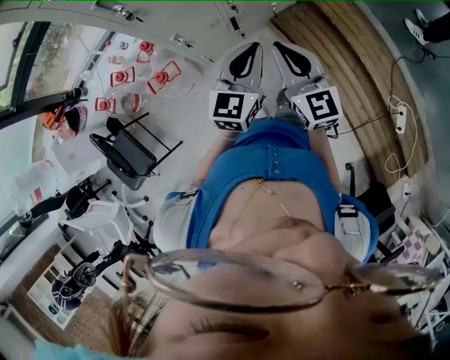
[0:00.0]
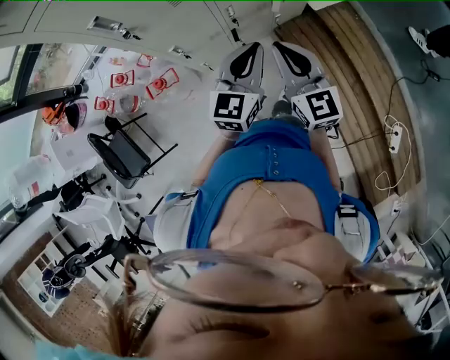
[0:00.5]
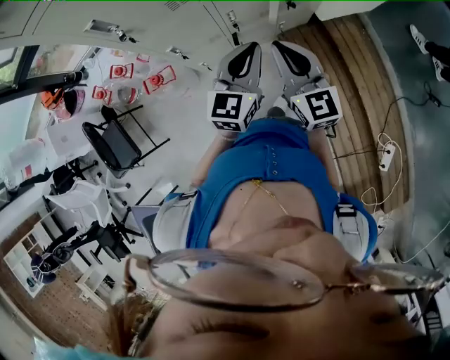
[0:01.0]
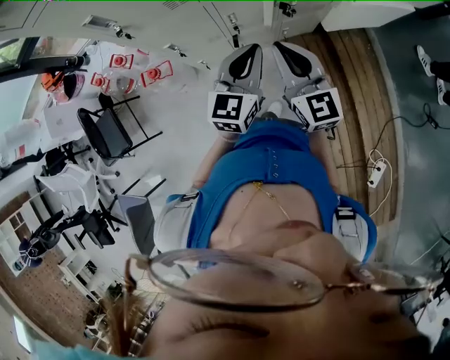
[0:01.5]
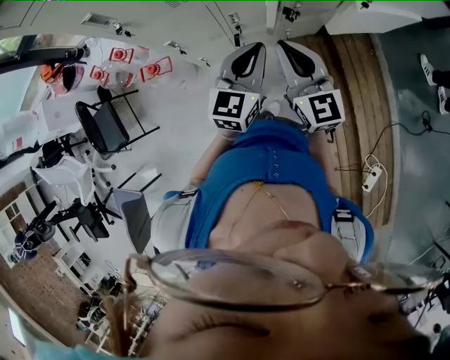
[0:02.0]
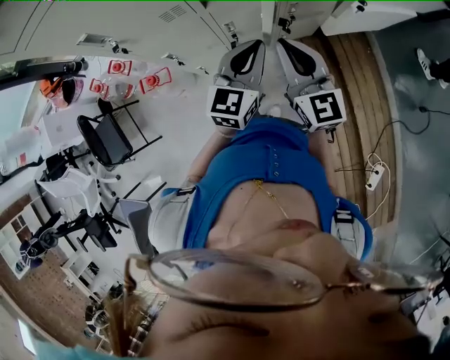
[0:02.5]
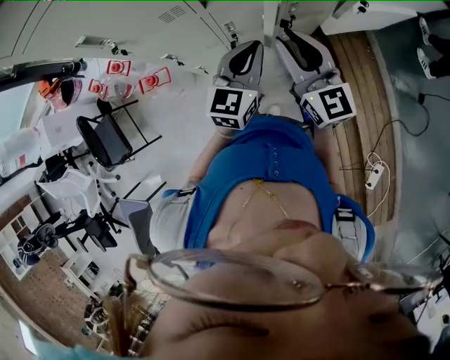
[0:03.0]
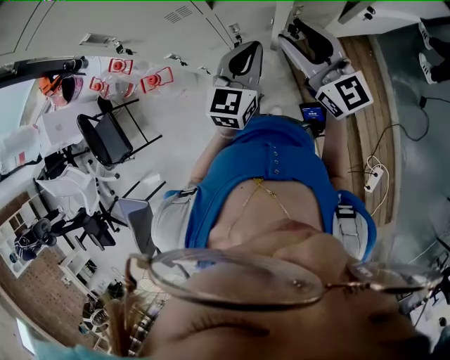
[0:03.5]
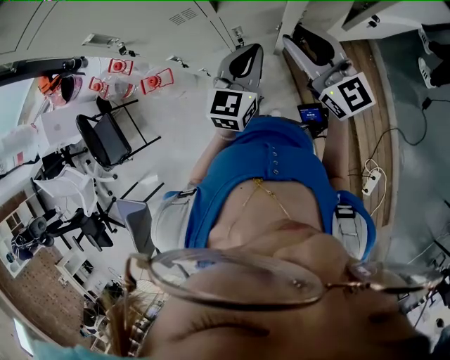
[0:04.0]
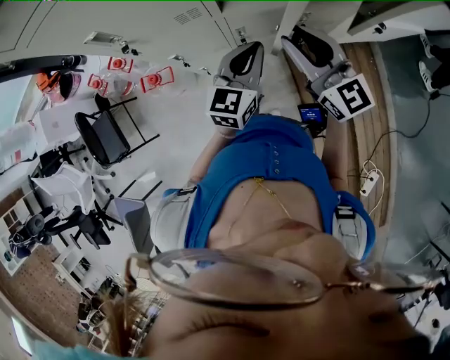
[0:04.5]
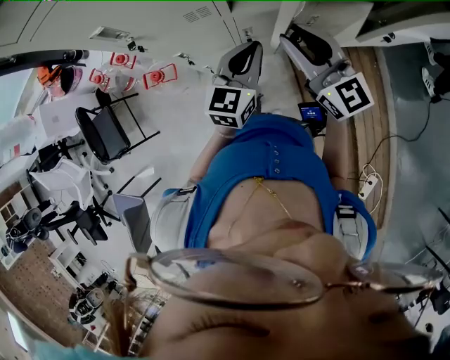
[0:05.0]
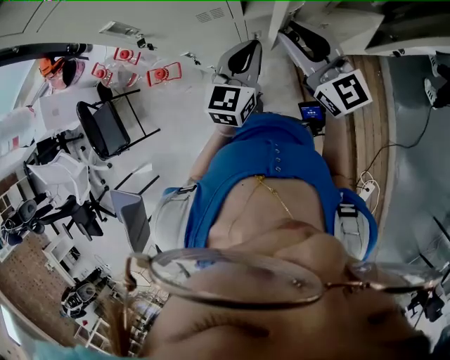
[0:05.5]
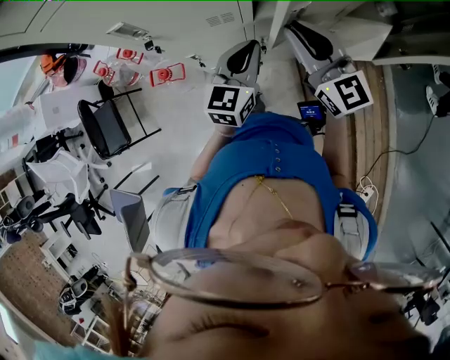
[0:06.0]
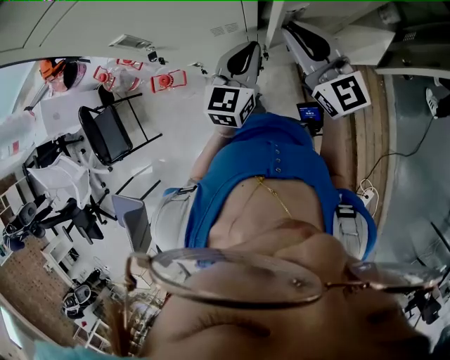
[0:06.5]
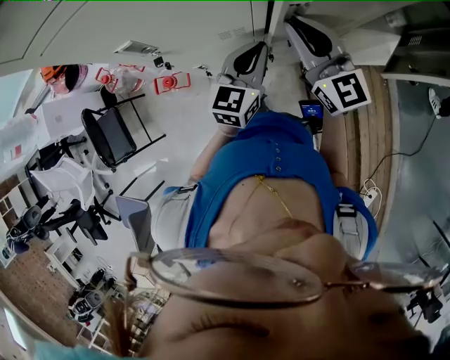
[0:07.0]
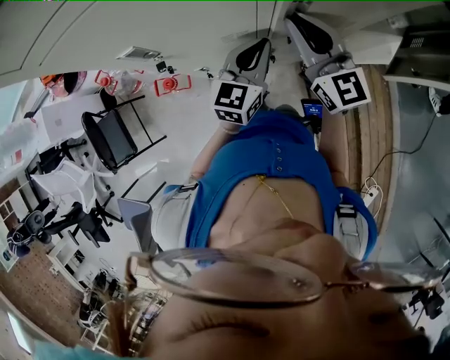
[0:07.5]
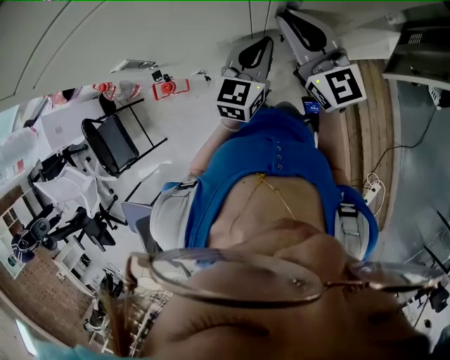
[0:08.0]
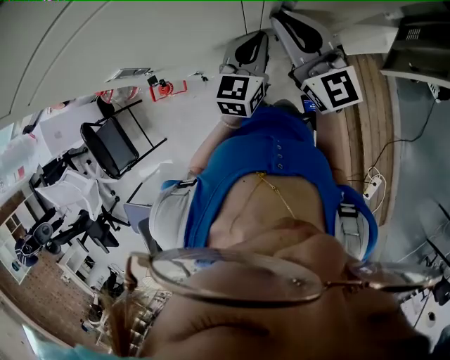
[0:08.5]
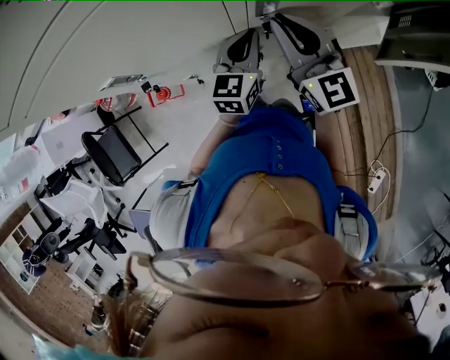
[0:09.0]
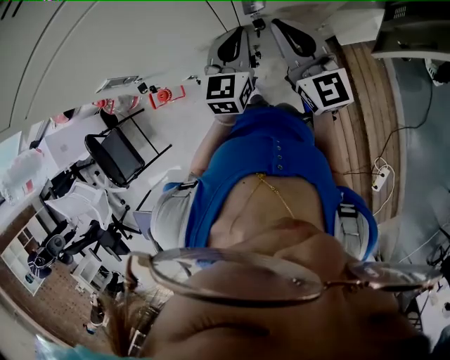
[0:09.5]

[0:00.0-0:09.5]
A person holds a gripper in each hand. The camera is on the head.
0.0 to 2.0 s: Both grippers travel together forward and to the right, roughly 20 cm.
2.0 to 4.0 s: Both grippers travel together forward, some 10 cm. The right gripper opens its fingers.
4.0 to 5.5 s: The grippers both shift to the left and forward by about 10 cm.
5.5 to 7.5 s: The two grippers go roughly 10 cm forward.
7.5 to 9.5 s: The right gripper shifts by about 5 cm.

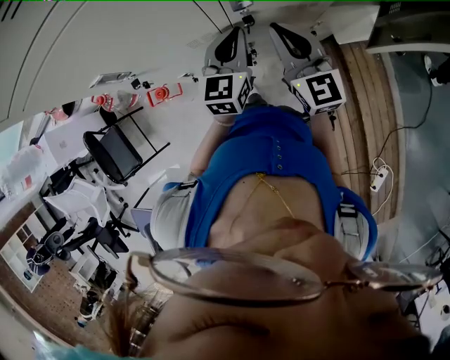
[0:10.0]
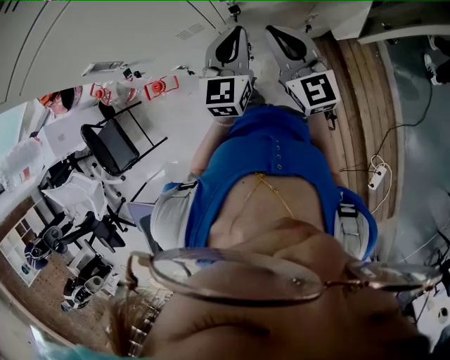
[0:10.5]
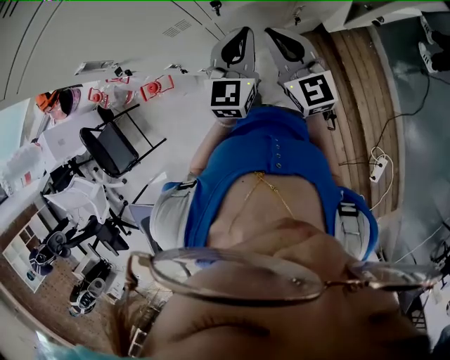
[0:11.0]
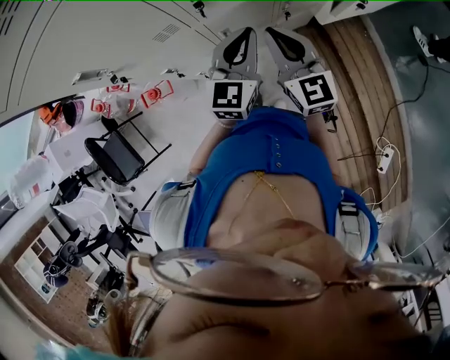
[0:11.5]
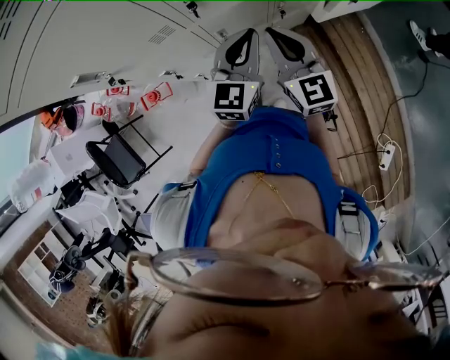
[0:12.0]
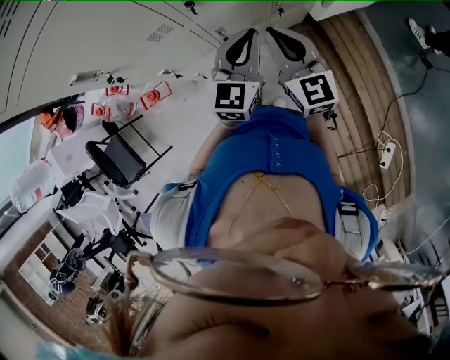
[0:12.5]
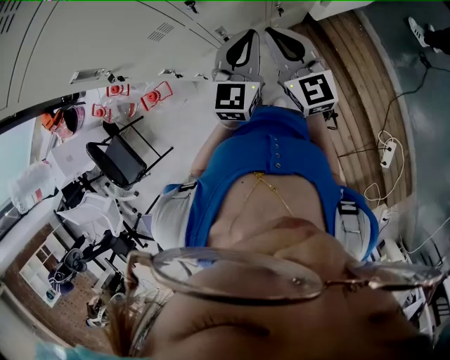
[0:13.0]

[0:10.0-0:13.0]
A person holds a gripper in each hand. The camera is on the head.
10.0 to 11.5 s: The left gripper goes roughly 15 cm to the right and backward; the right gripper goes roughly 15 cm backward and to the right.
11.5 to 13.0 s: There are only small adjustments of the grippers.

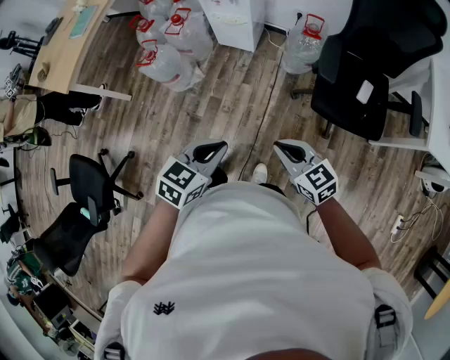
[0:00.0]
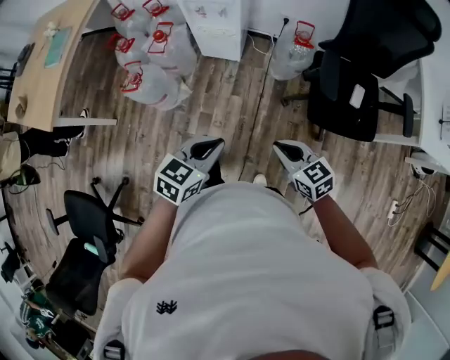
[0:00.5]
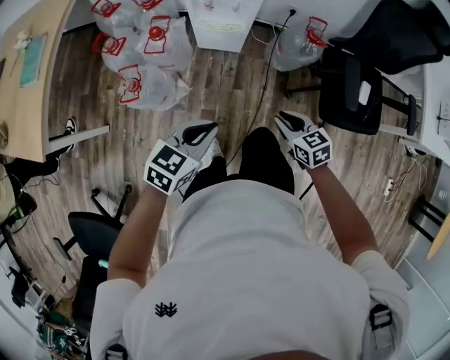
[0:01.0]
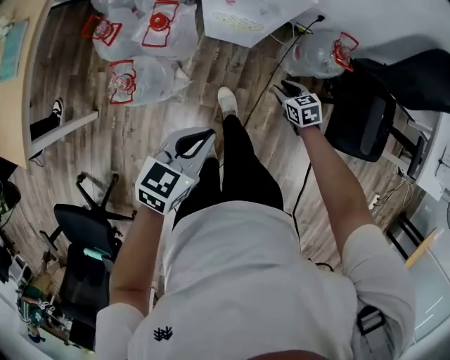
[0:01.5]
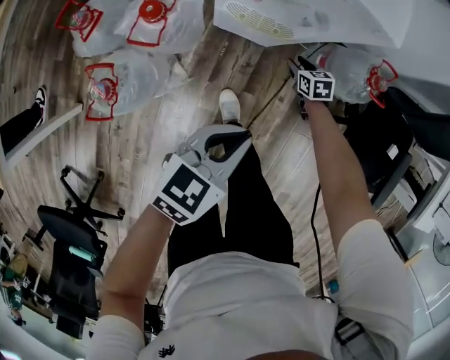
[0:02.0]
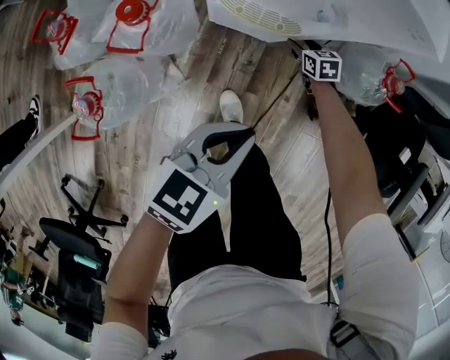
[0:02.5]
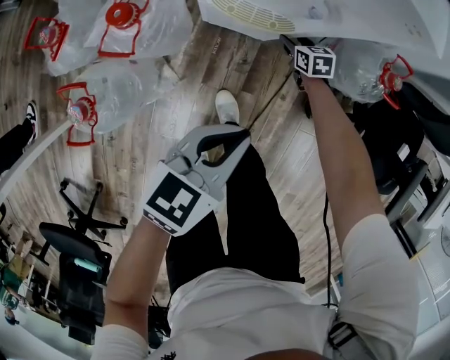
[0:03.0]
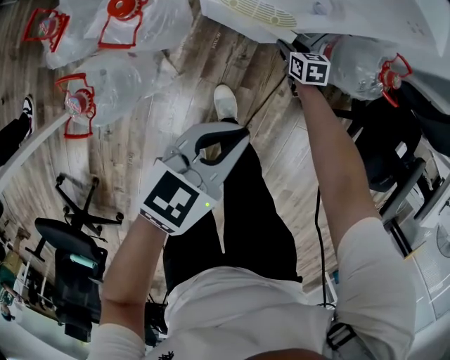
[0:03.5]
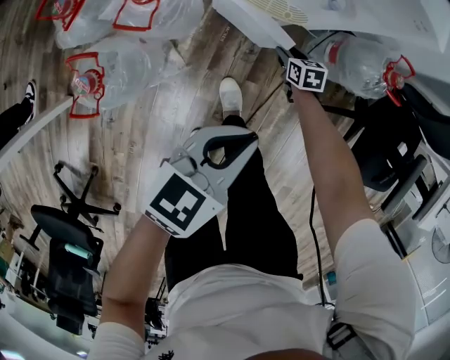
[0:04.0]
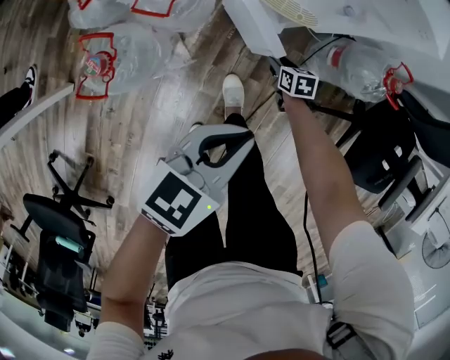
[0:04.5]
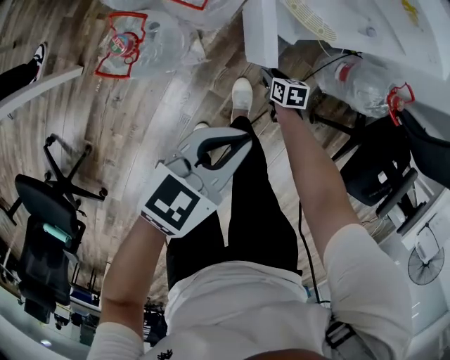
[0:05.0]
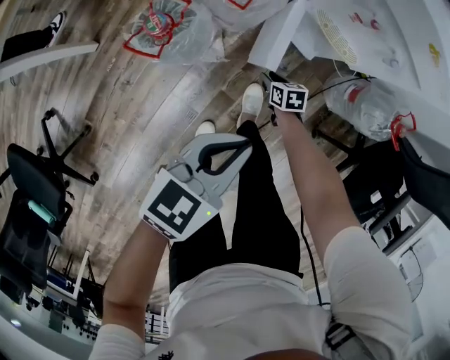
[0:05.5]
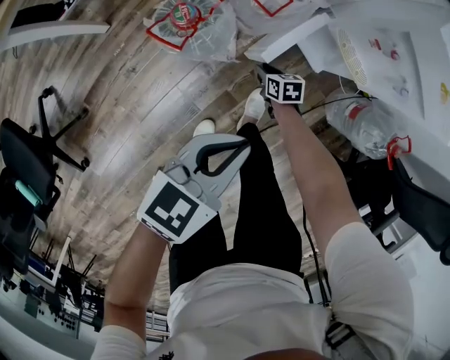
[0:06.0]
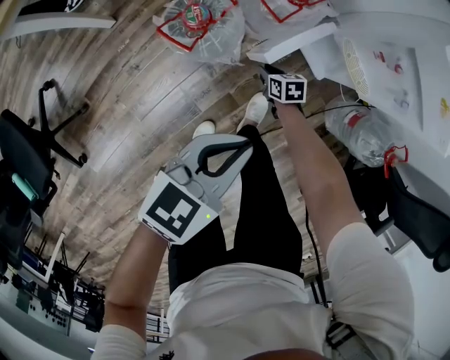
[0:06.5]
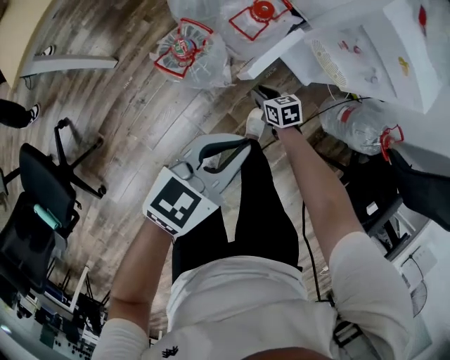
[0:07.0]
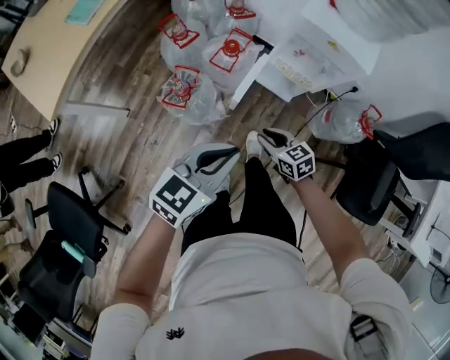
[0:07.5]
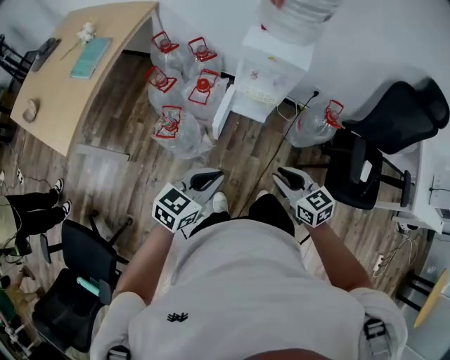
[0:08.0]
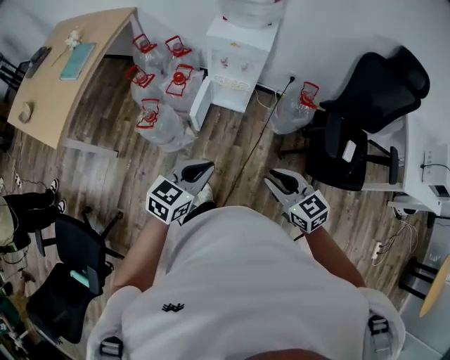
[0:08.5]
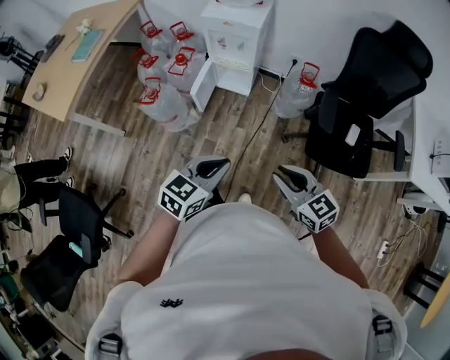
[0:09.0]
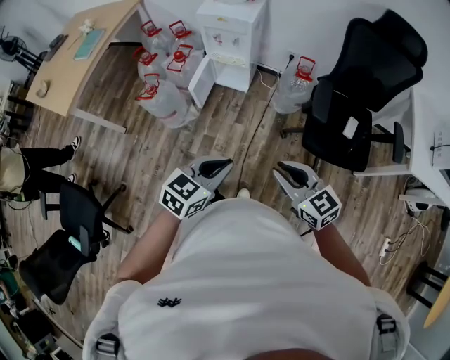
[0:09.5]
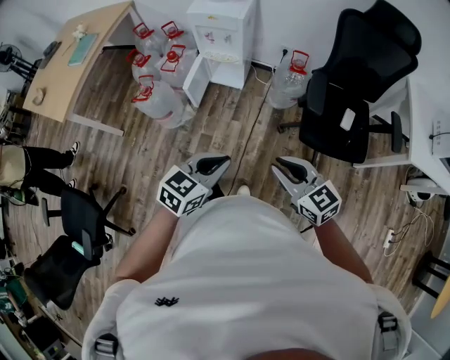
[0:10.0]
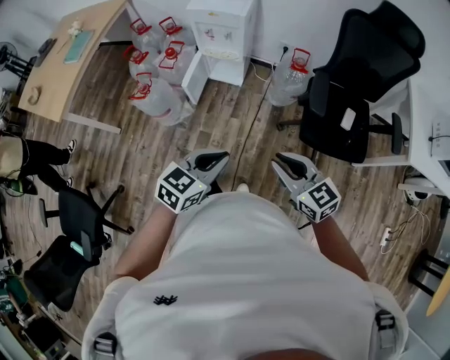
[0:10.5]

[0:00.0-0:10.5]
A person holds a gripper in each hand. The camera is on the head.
0.0 to 2.0 s: Both grippers are carried forward, approximately 60 cm. The right gripper moves downward, about 50 cm, angles its fingers downward, by approximately 30 degrees, and opens its fingers; the left gripper heads downward, covering approximately 20 cm.
2.0 to 4.0 s: The right gripper shifts approximately 5 cm downward, and moves roughly 5 cm forward and comes back.
4.0 to 6.5 s: The left gripper changes place by about 20 cm, and changes its angle by roughly 30 degrees. Meanwhile the right gripper ends up roughly 35 cm from where it was, turns by roughly 30 degrees, and closes.
6.5 to 8.5 s: The left gripper changes place by some 35 cm, and turns by about 30 degrees. Meanwhile the right gripper shifts about 60 cm upward, and points its fingers approximately 30 degrees further upward.
8.5 to 10.5 s: Both grippers move to the right and backward, roughly 20 cm.

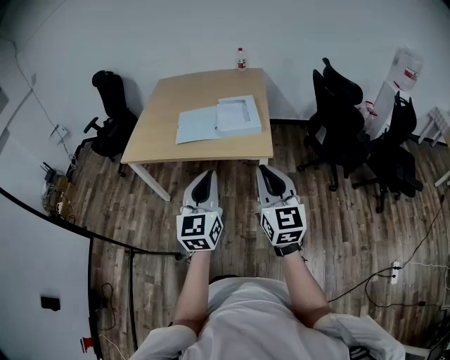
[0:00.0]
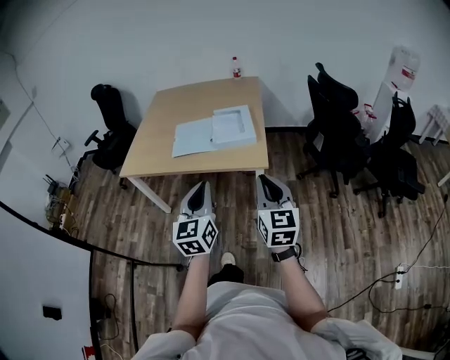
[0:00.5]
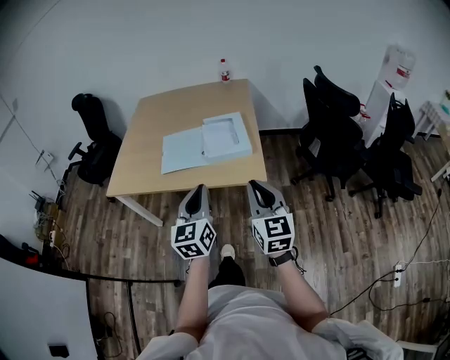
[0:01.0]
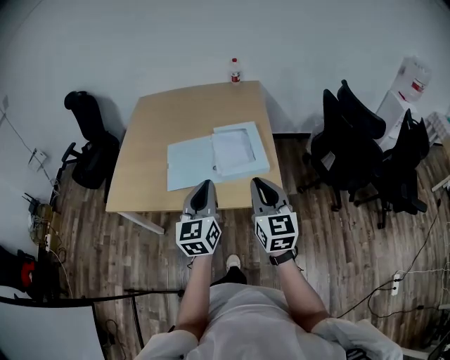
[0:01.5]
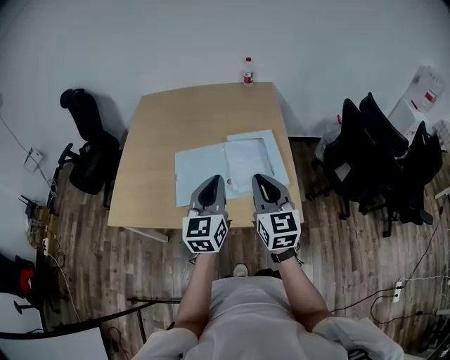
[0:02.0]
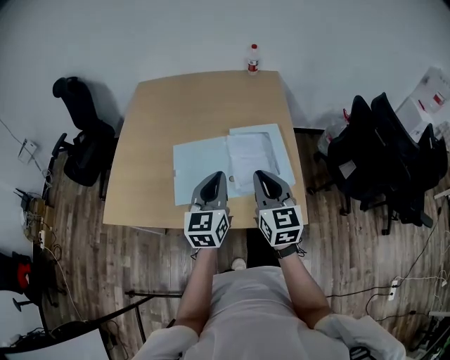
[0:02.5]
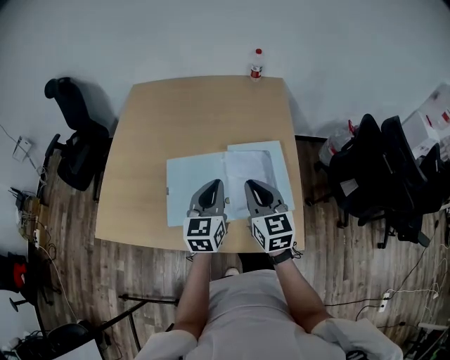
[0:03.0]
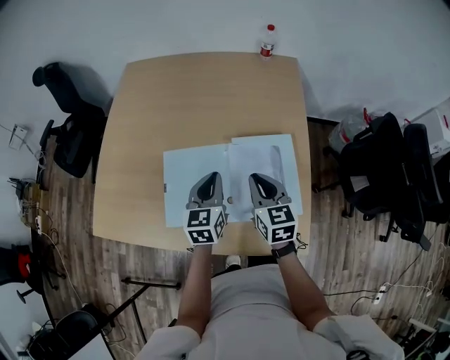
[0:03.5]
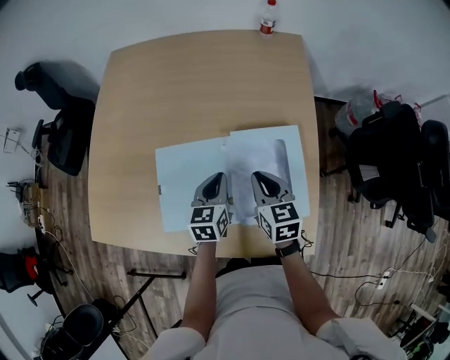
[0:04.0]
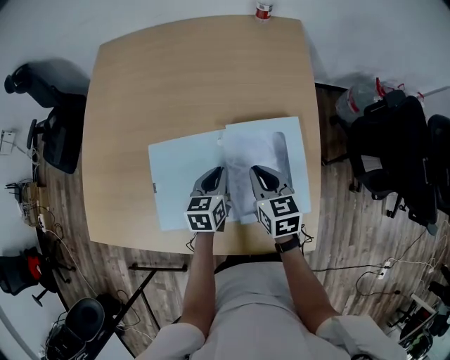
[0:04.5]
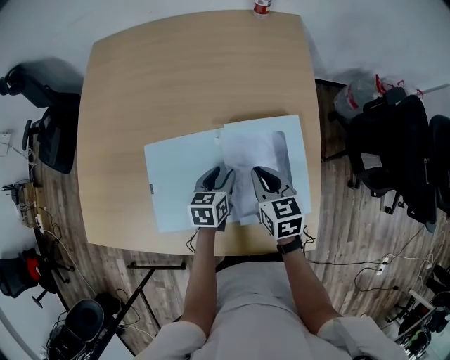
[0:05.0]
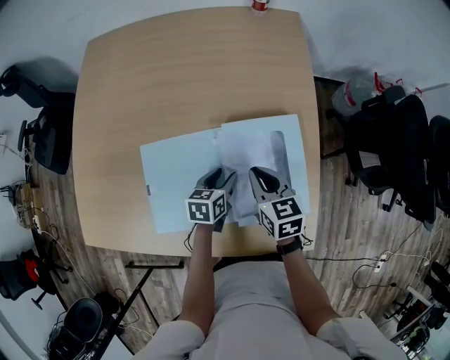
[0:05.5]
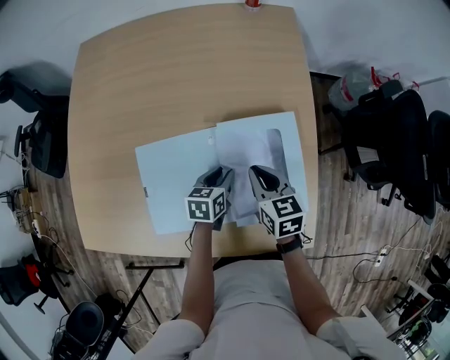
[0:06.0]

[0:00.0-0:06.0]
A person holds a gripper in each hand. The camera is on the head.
0.0 to 2.0 s: The two grippers travel together, forward, some 40 cm.
2.0 to 4.0 s: The right gripper travels forward and downward by roughly 30 cm, and swivels roughly 30 degrees. Meanwhile the left gripper shifts some 35 cm downward and forward, and changes its angle by roughly 30 degrees.
4.0 to 6.0 s: The left gripper goes roughly 10 cm downward, changes its angle by approximately 30 degrees, and opens up; the right gripper shifts roughly 5 cm downward.
